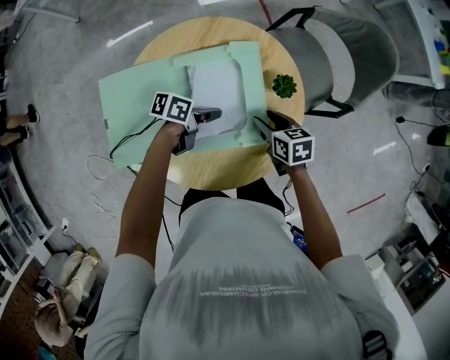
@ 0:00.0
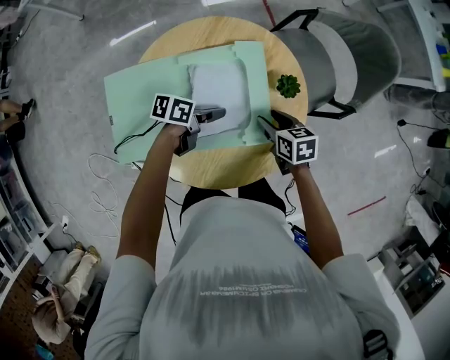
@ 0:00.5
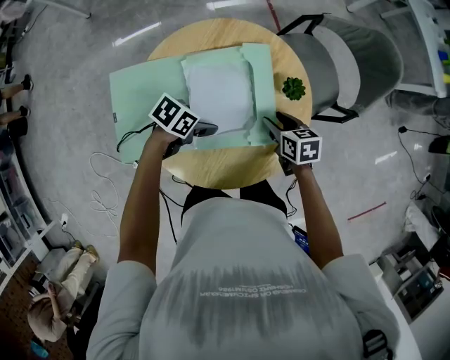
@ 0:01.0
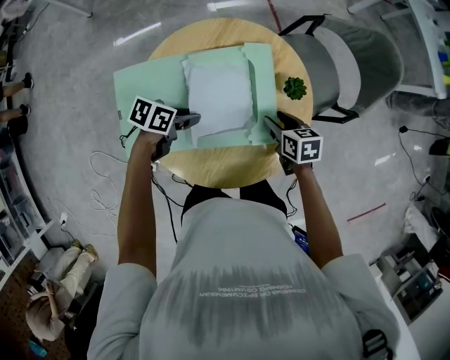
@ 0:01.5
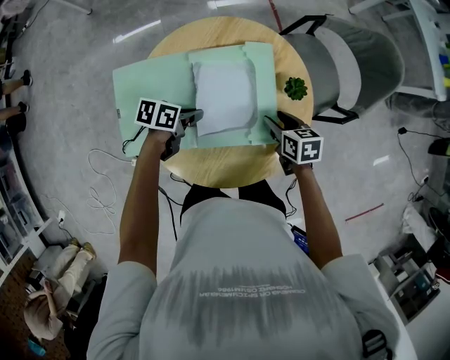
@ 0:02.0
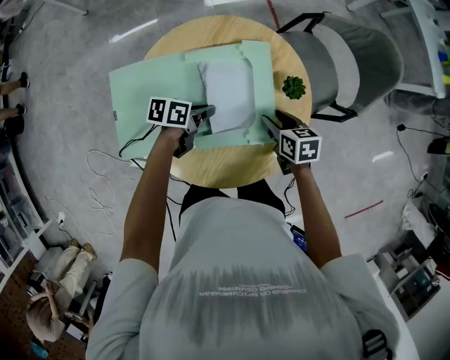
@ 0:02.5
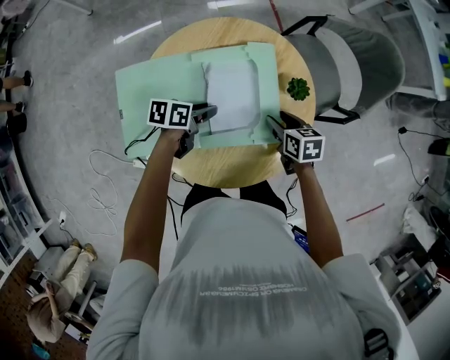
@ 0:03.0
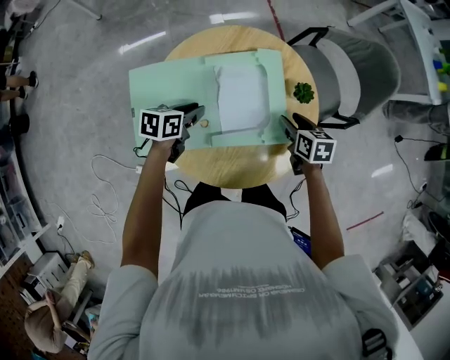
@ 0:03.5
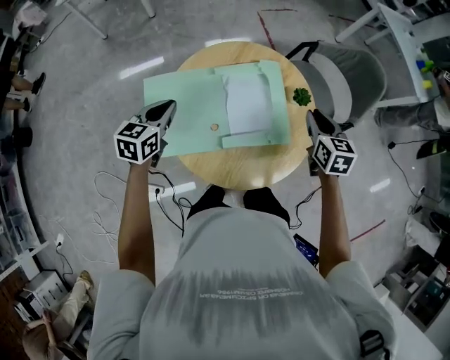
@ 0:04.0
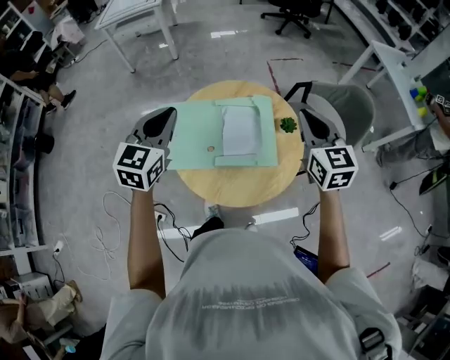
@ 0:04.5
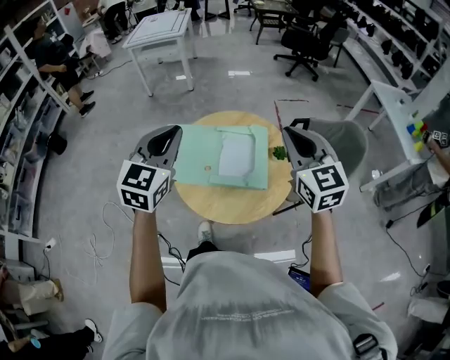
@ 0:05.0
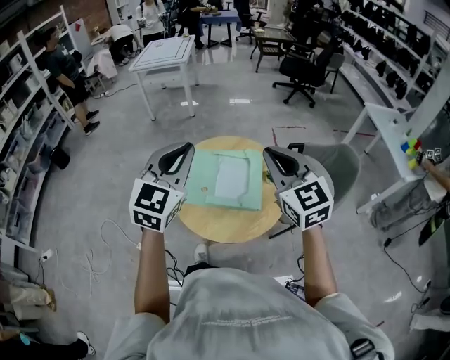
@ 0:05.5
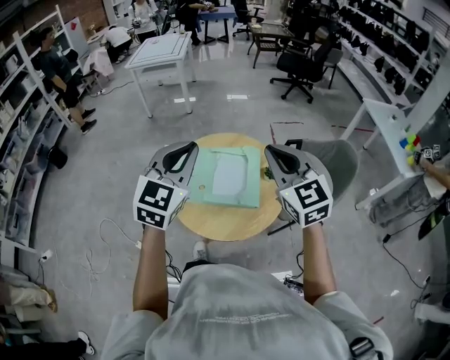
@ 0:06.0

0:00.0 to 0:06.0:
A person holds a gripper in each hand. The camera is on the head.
0:00.0 to 0:02.0: The left gripper moves about 10 cm, and opens and closes again.
0:02.0 to 0:04.0: The right gripper heads upward, covering approximately 15 cm, turns by roughly 30 degrees, and closes. The left gripper moves upward and to the left, approximately 20 cm, changes its angle by approximately 50 degrees, and opens and closes again.
0:04.0 to 0:06.0: Both grippers move upward, some 30 cm. The right gripper turns by some 50 degrees. Meanwhile the left gripper swivels roughly 40 degrees.

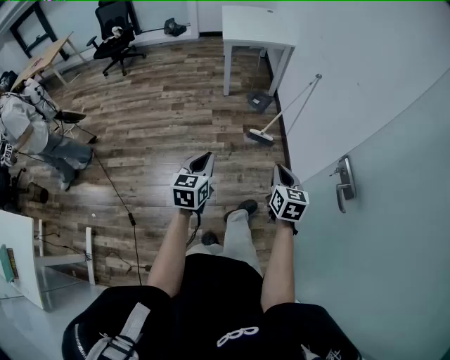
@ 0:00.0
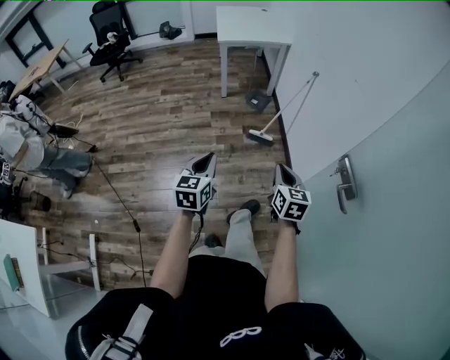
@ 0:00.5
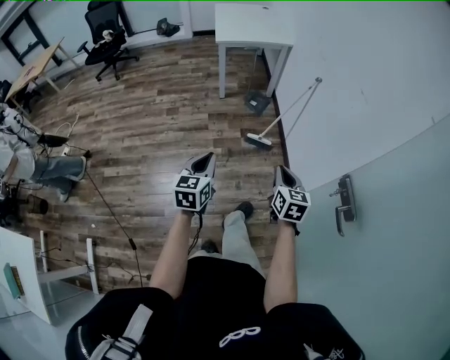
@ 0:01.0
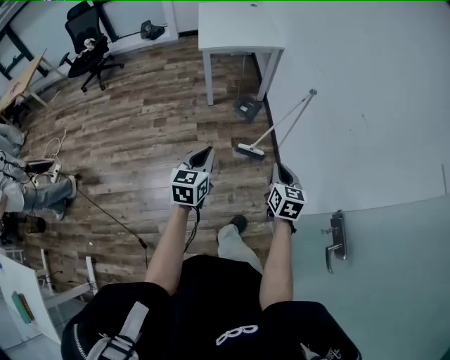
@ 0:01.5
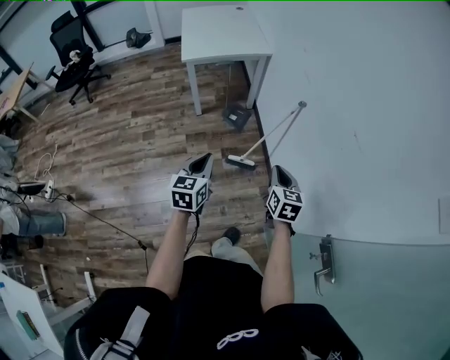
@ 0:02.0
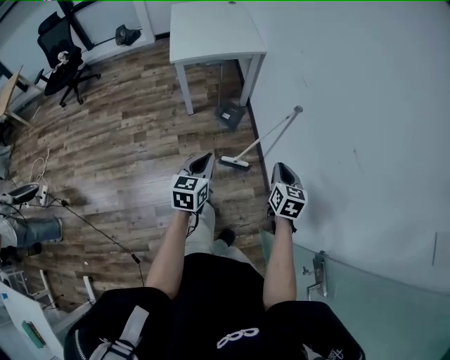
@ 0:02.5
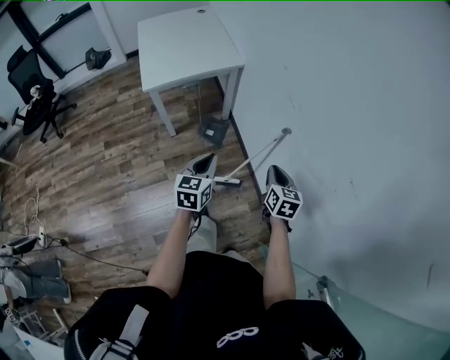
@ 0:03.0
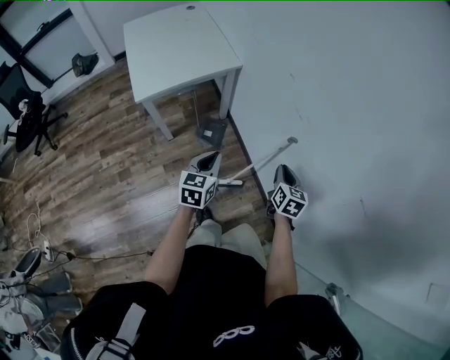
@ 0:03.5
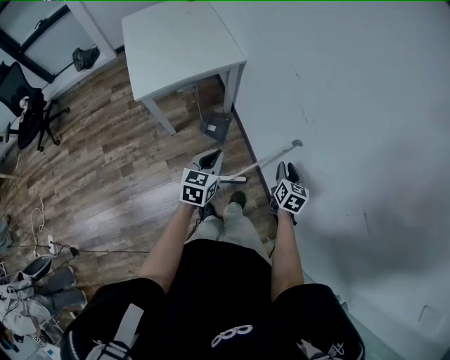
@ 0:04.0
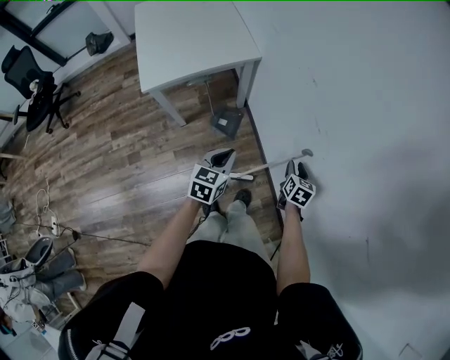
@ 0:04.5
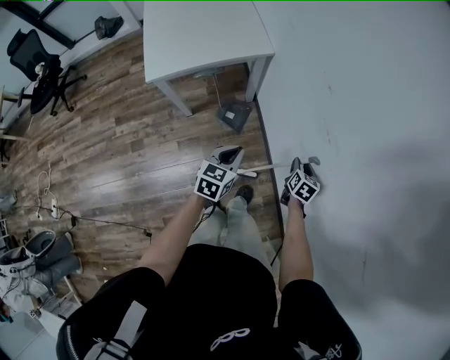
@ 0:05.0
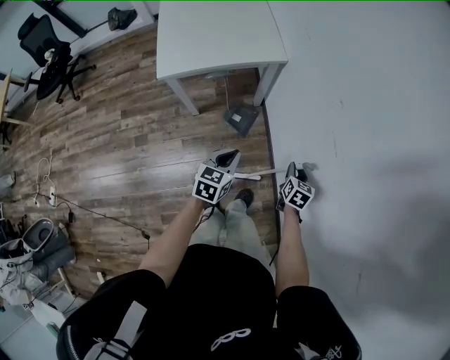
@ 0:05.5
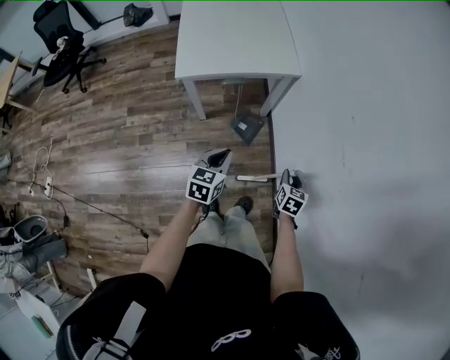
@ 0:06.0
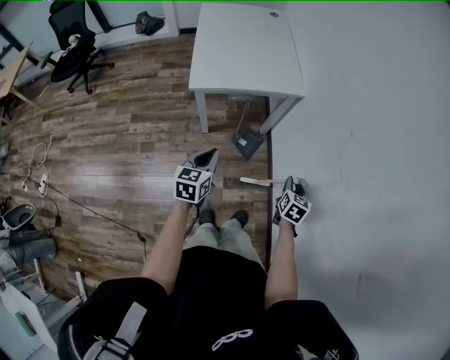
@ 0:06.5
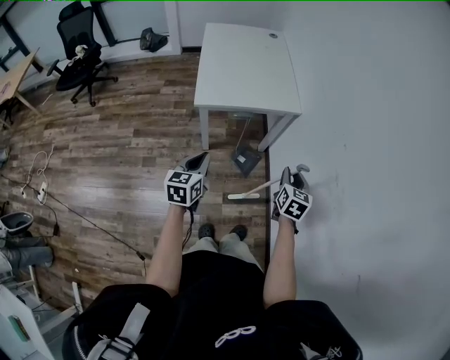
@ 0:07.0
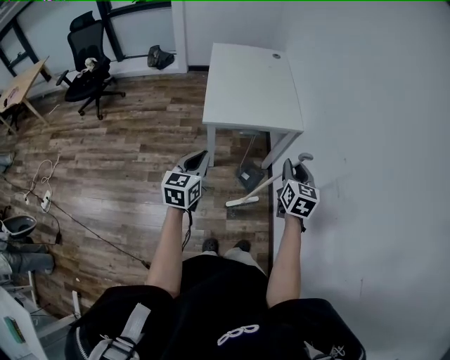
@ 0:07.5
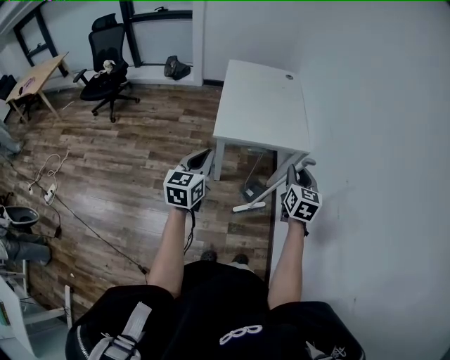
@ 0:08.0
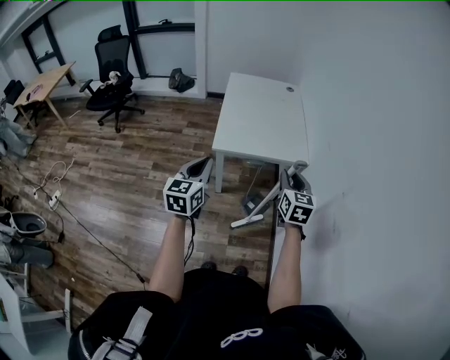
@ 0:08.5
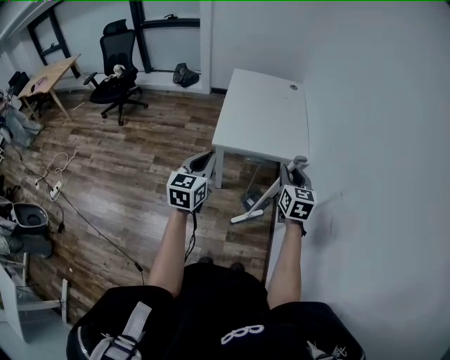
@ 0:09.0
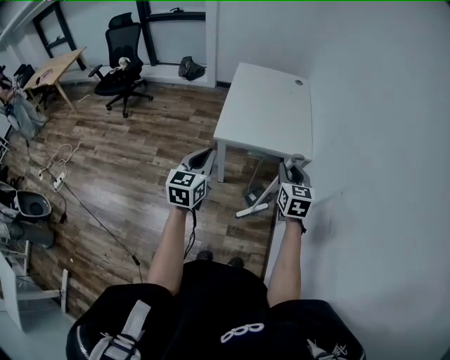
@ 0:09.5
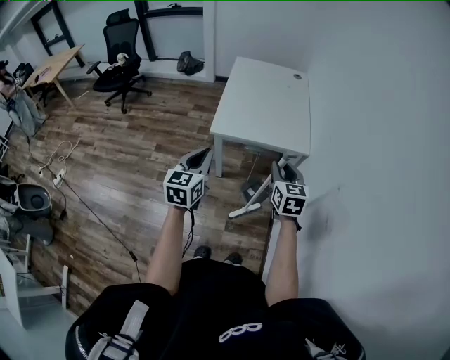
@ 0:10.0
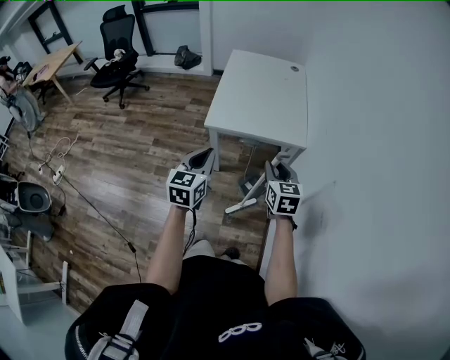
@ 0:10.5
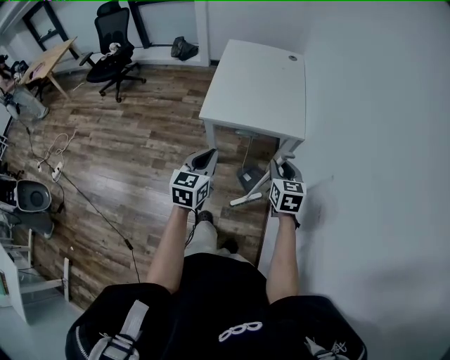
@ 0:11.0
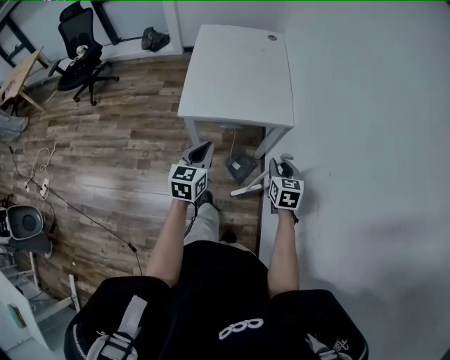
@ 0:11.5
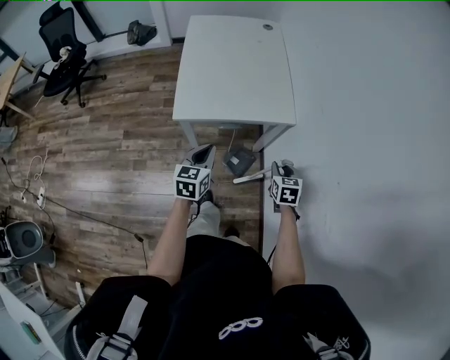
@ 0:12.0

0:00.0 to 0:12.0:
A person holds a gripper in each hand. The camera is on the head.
0:00.0 to 0:02.0: Both grippers move forward, approximately 40 cm.
0:02.0 to 0:04.0: The two grippers go roughly 35 cm forward. The left gripper turns by roughly 20 degrees. Meanwhile the right gripper turns by approximately 20 degrees.
0:04.0 to 0:06.0: The right gripper moves to the left, downward and forward, some 15 cm; the left gripper travels to the left by roughly 10 cm.
0:06.0 to 0:08.0: The grippers both shift upward and to the left by approximately 35 cm. The right gripper swivels approximately 30 degrees. Meanwhile the left gripper swivels roughly 30 degrees.
0:08.0 to 0:10.0: The left gripper travels to the right by some 10 cm.
0:10.0 to 0:12.0: The left gripper moves downward, forward and to the right, some 25 cm; the right gripper is displaced downward and to the right by approximately 25 cm, and rotates roughly 30 degrees.

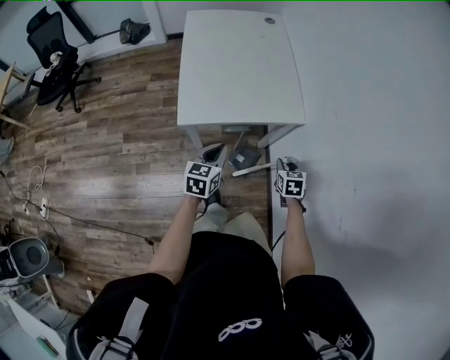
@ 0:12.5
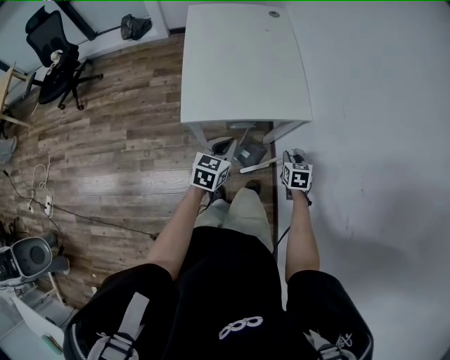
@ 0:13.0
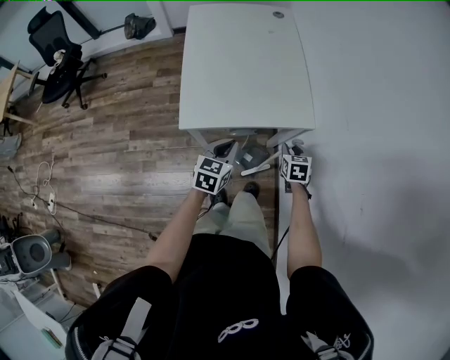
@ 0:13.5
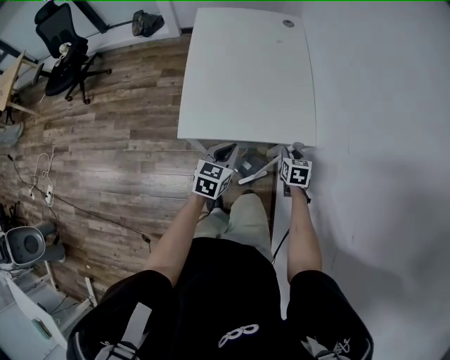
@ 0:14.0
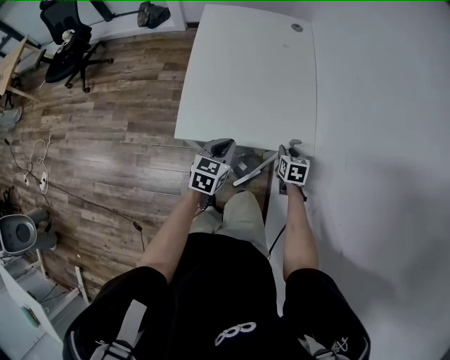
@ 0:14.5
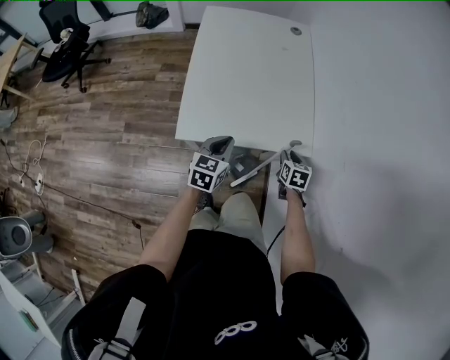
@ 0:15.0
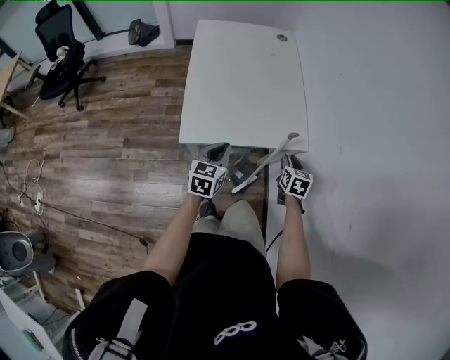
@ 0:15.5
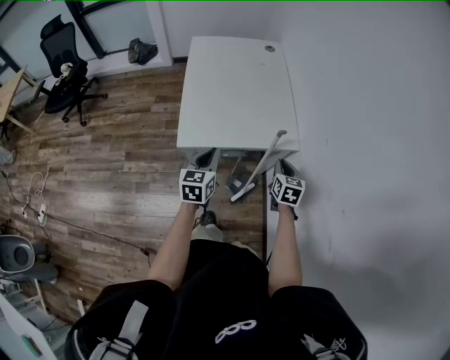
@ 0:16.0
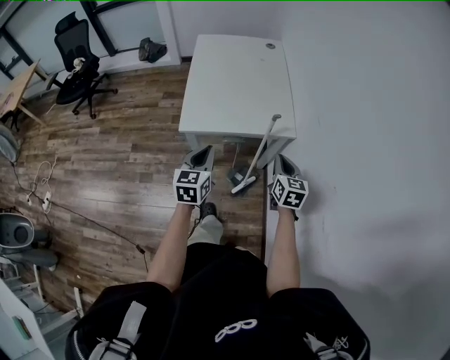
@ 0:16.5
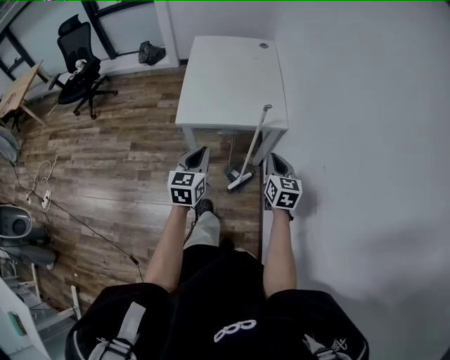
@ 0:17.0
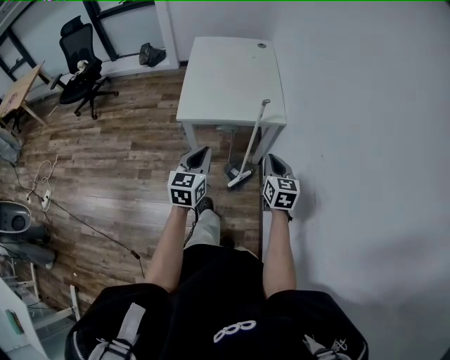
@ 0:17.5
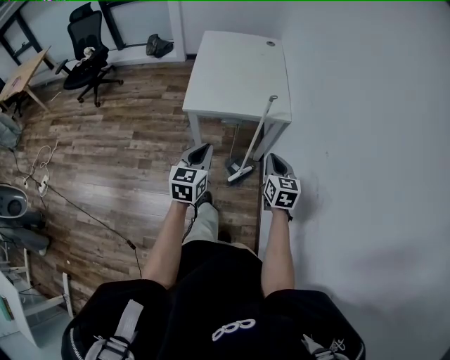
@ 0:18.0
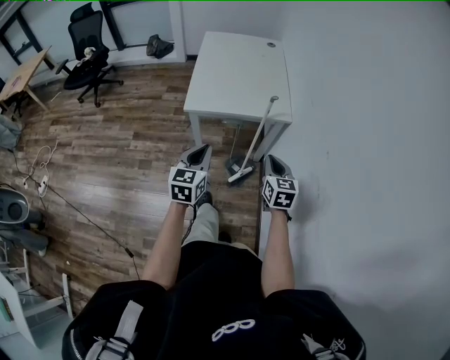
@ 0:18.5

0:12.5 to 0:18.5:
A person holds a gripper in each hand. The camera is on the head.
0:12.5 to 0:14.5: Both grippers travel together forward, some 15 cm.
0:14.5 to 0:16.5: Both grippers travel together backward and upward, approximately 25 cm. The right gripper swivels approximately 30 degrees, and closes its fingers.
0:16.5 to 0:18.5: Both grippers travel together backward, some 15 cm.

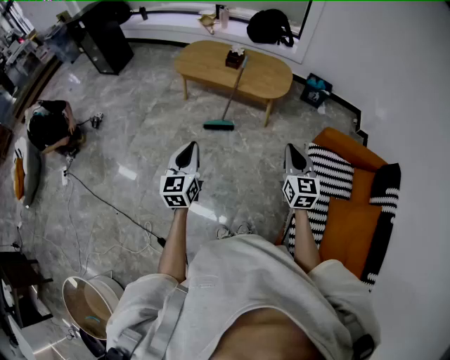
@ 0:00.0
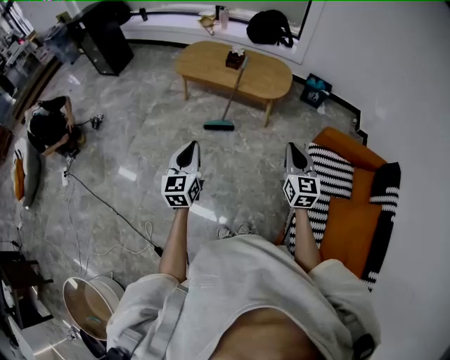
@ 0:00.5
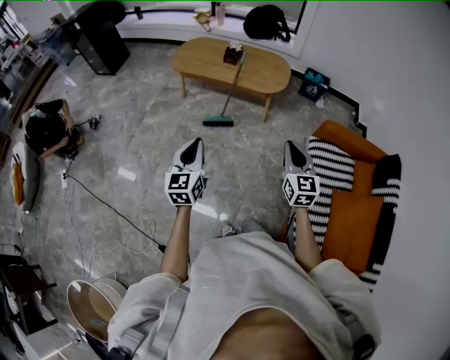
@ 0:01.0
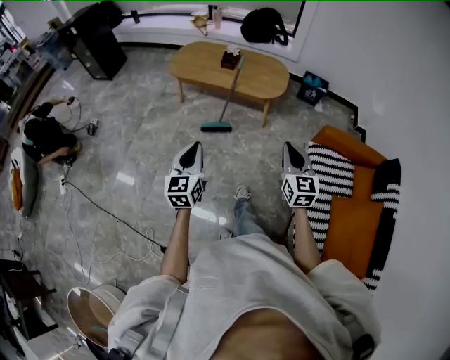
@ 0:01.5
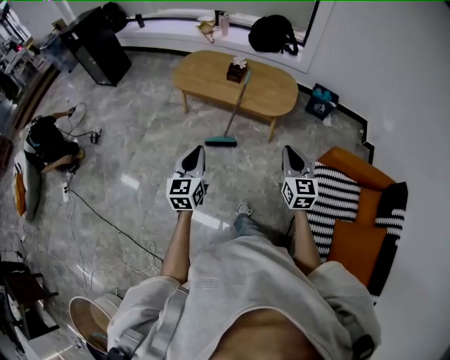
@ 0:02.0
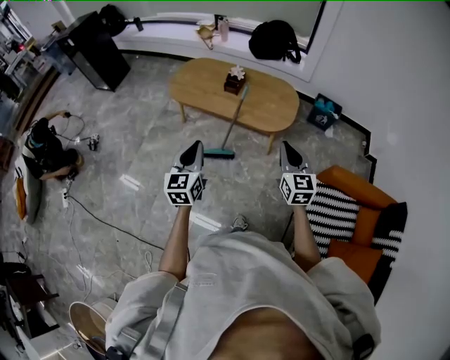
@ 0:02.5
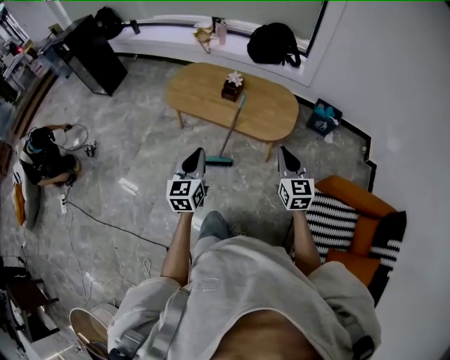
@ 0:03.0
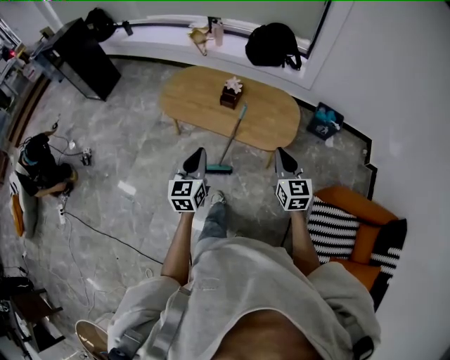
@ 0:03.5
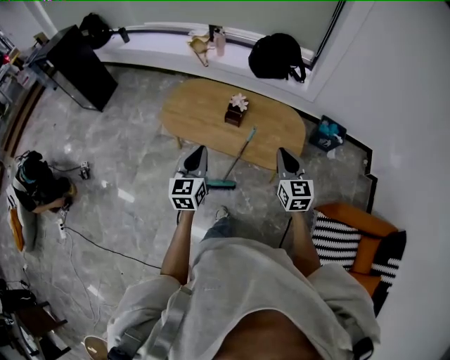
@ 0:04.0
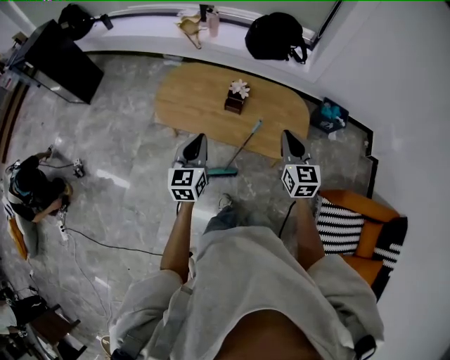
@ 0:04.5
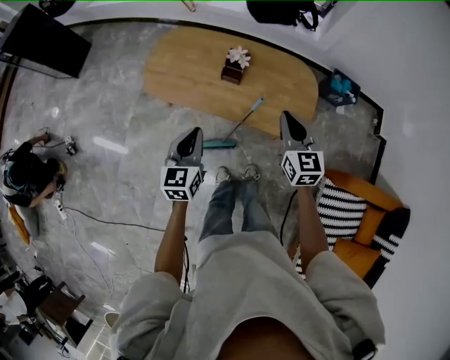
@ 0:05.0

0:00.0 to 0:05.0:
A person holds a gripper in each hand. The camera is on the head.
0:00.0 to 0:02.5: The two grippers go some 30 cm forward.
0:02.5 to 0:05.0: Both grippers move forward, approximately 35 cm.
